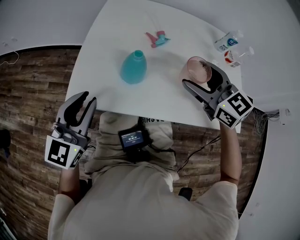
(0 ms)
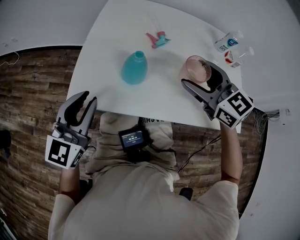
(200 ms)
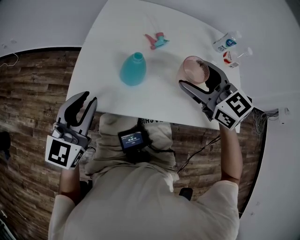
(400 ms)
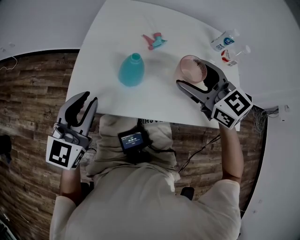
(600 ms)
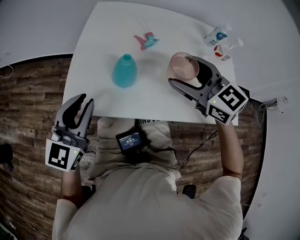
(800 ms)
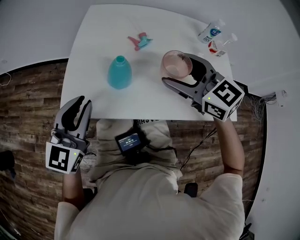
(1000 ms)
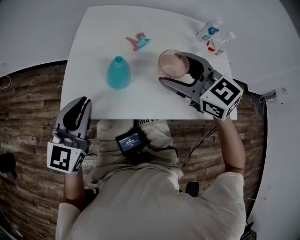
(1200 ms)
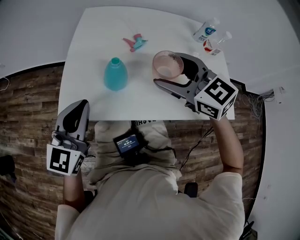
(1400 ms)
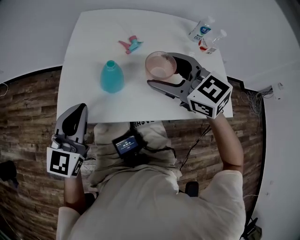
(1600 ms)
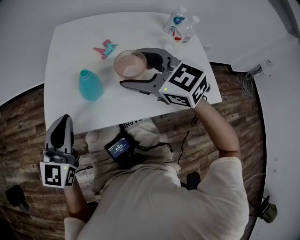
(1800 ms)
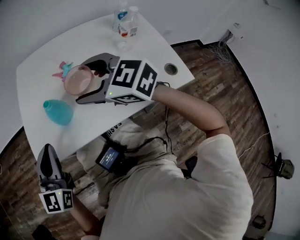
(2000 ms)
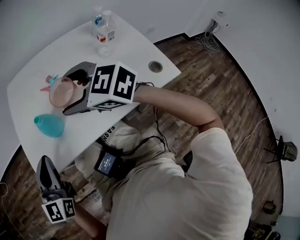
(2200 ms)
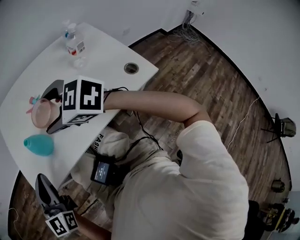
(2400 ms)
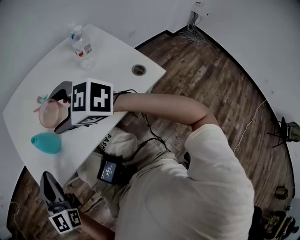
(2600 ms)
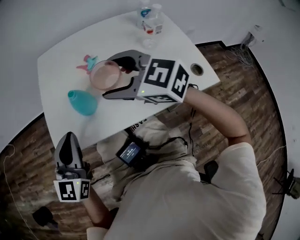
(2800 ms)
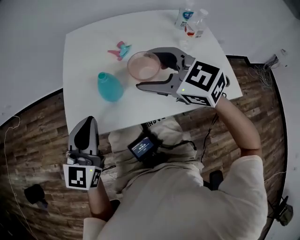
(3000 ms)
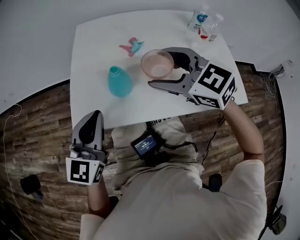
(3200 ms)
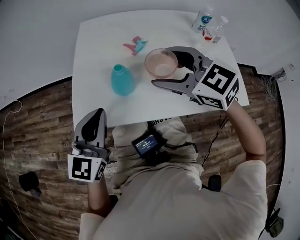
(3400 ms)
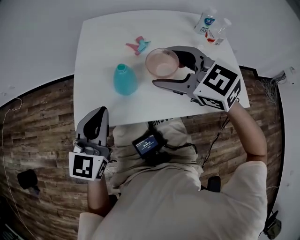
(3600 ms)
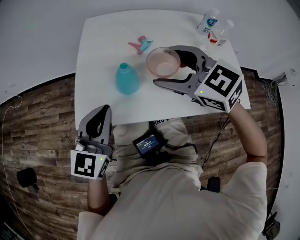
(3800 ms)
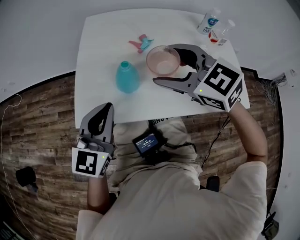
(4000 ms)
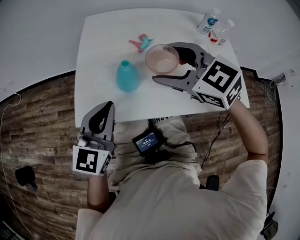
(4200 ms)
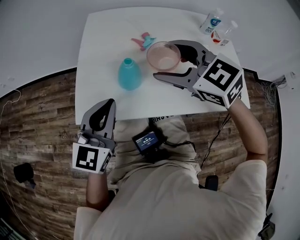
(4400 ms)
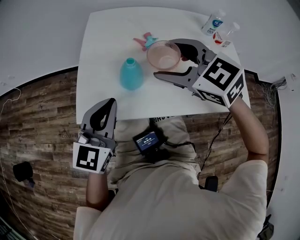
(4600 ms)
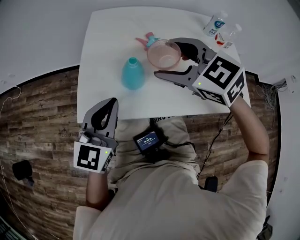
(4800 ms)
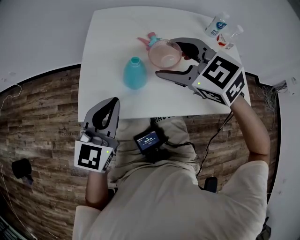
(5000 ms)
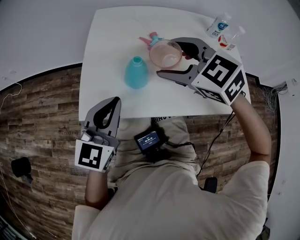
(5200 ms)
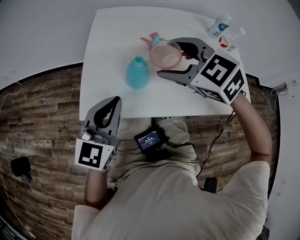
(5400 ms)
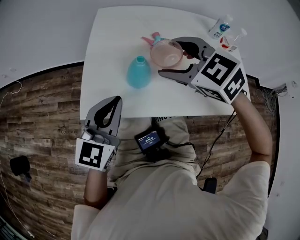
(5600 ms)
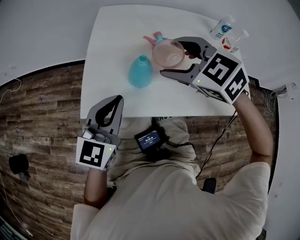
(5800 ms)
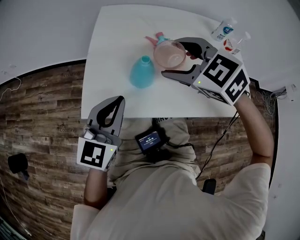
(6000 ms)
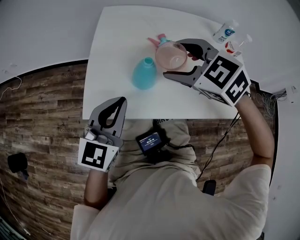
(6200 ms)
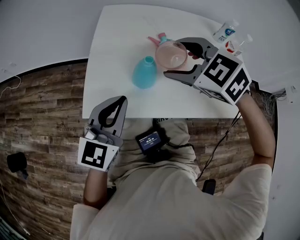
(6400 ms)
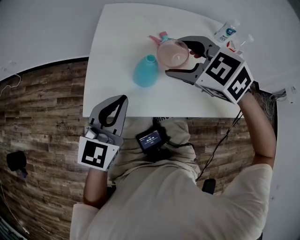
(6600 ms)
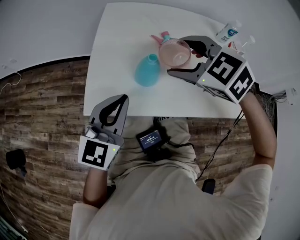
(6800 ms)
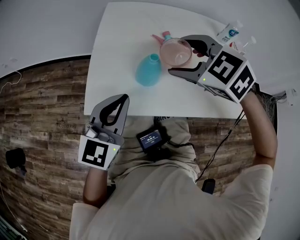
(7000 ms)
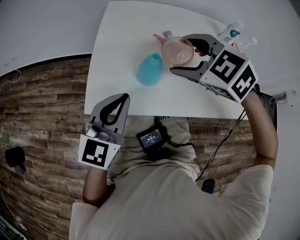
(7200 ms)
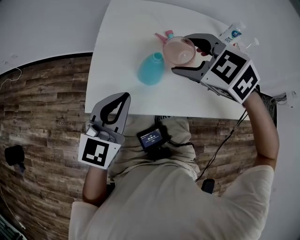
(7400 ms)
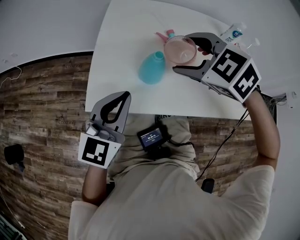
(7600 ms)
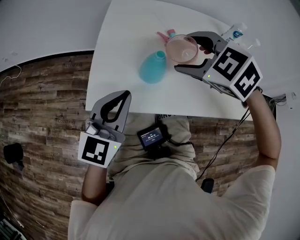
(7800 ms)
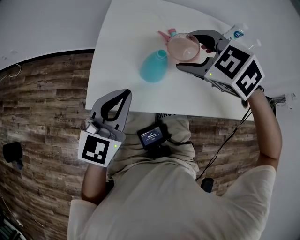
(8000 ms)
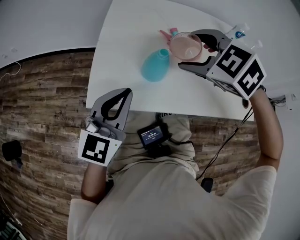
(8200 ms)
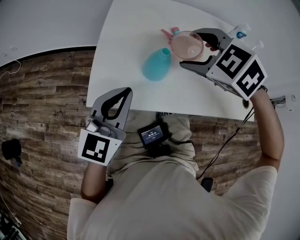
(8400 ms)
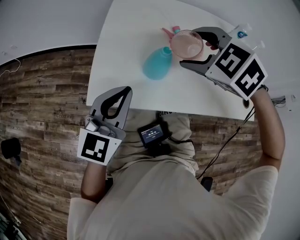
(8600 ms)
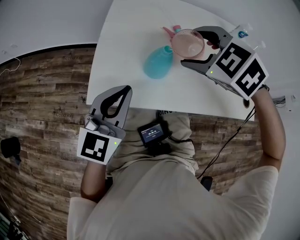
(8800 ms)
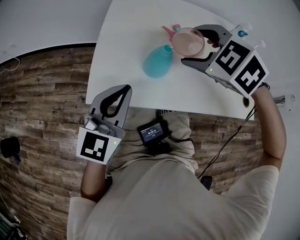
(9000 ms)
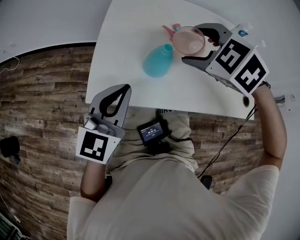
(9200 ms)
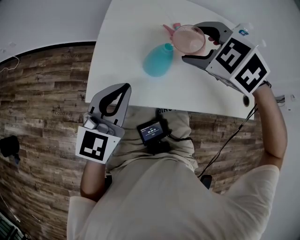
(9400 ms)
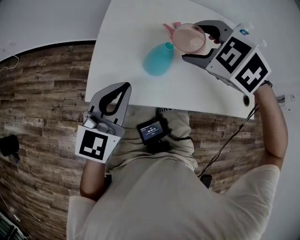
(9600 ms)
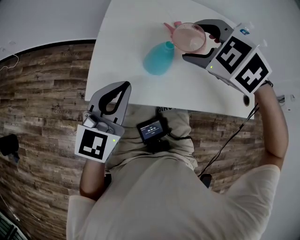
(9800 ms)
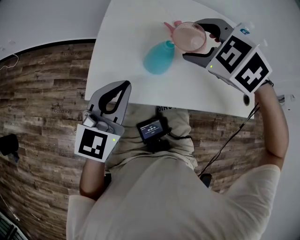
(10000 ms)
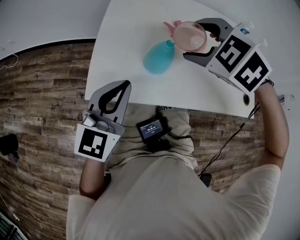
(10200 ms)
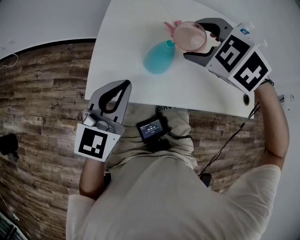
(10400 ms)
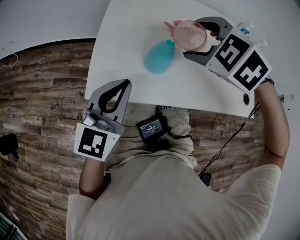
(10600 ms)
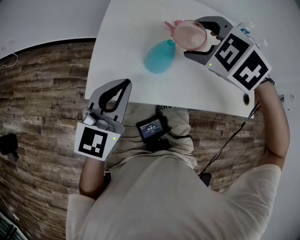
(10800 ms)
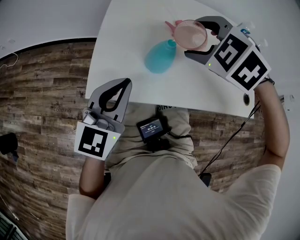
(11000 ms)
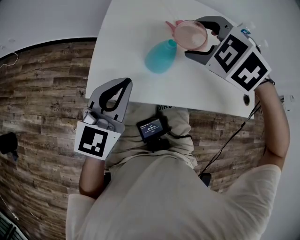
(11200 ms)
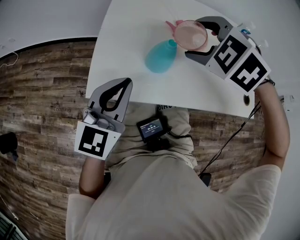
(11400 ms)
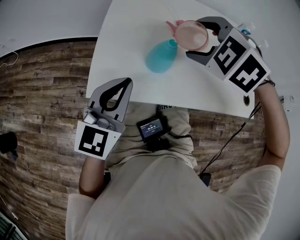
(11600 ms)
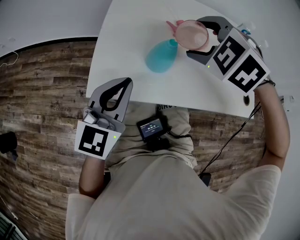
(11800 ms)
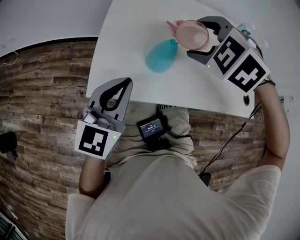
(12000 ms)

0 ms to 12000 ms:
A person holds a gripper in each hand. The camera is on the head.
0 ms to 1600 ms: The left gripper closes.
1600 ms to 4400 ms: There are only small adjustments of the grippers.
4400 ms to 6000 ms: There are only small adjustments of the grippers.
6000 ms to 9000 ms: The grippers make only small movements.
9000 ms to 12000 ms: The grippers make only small movements.

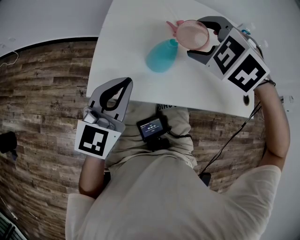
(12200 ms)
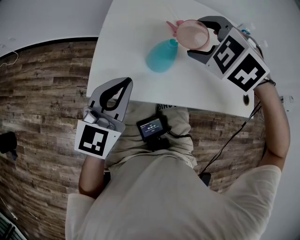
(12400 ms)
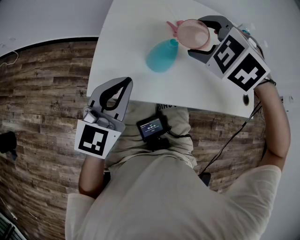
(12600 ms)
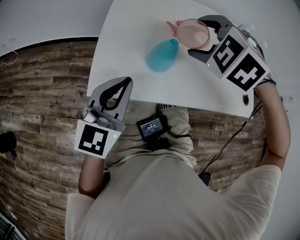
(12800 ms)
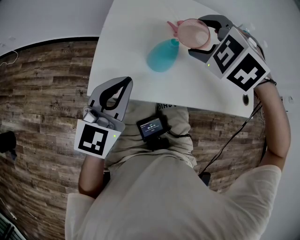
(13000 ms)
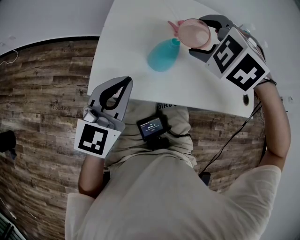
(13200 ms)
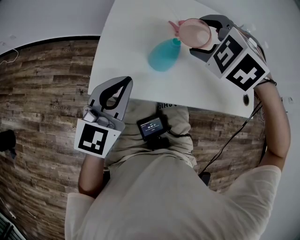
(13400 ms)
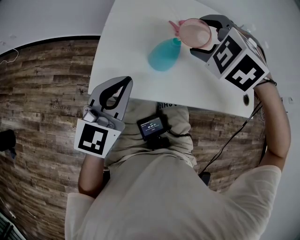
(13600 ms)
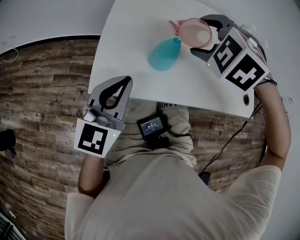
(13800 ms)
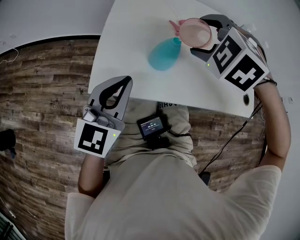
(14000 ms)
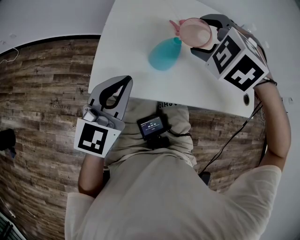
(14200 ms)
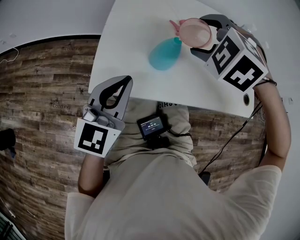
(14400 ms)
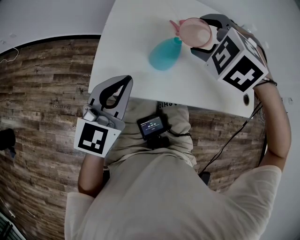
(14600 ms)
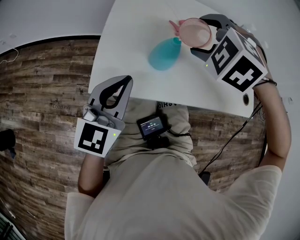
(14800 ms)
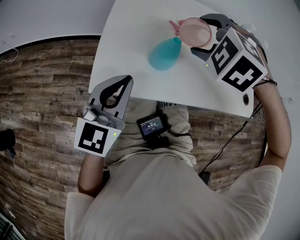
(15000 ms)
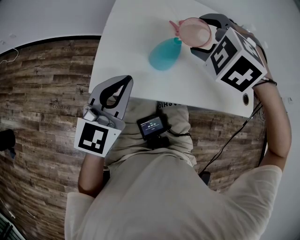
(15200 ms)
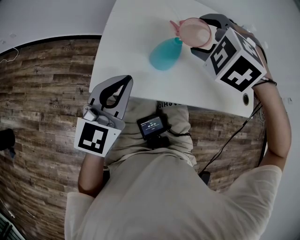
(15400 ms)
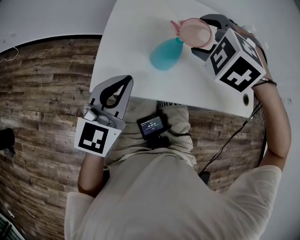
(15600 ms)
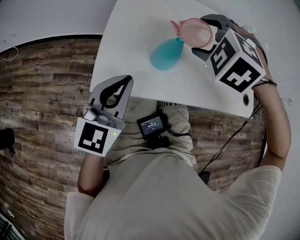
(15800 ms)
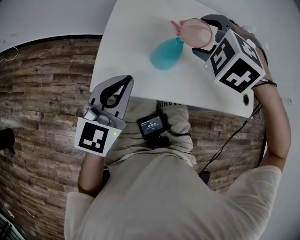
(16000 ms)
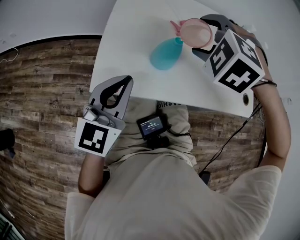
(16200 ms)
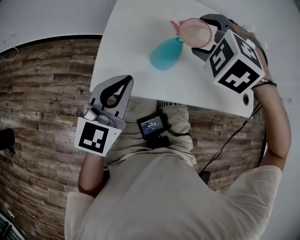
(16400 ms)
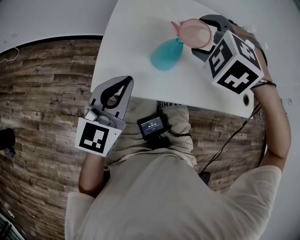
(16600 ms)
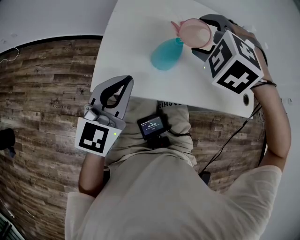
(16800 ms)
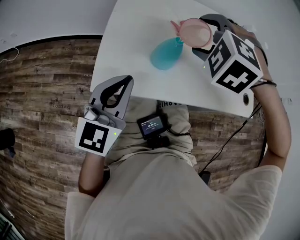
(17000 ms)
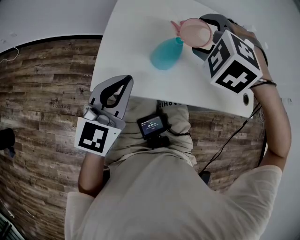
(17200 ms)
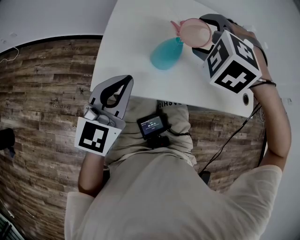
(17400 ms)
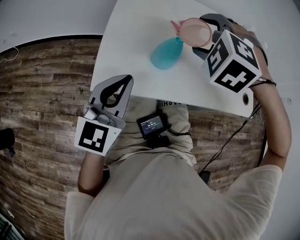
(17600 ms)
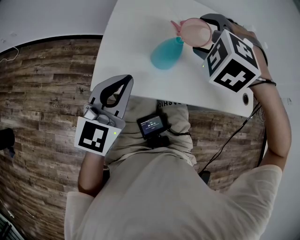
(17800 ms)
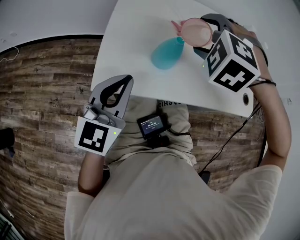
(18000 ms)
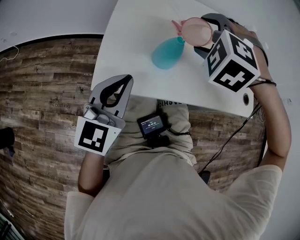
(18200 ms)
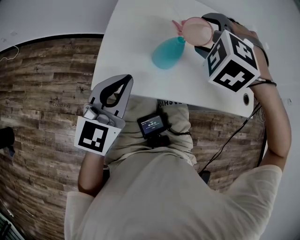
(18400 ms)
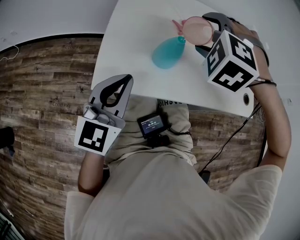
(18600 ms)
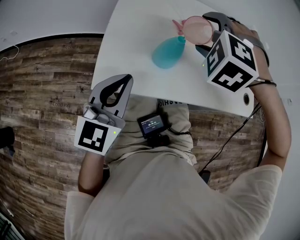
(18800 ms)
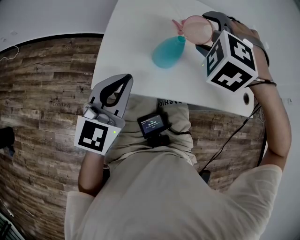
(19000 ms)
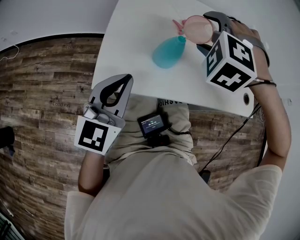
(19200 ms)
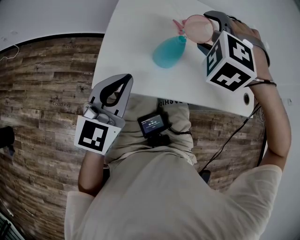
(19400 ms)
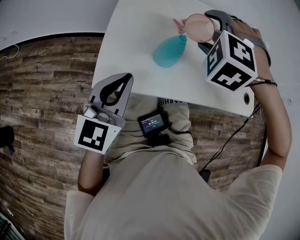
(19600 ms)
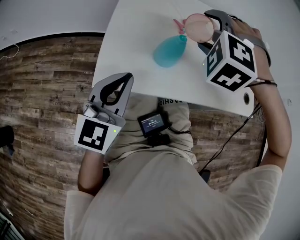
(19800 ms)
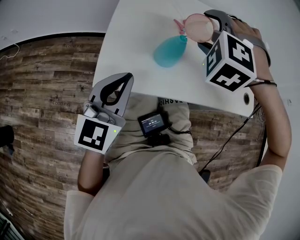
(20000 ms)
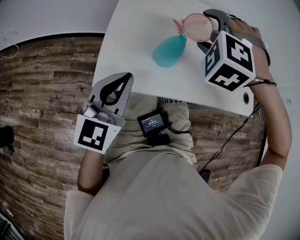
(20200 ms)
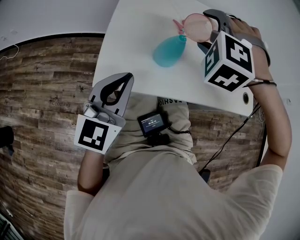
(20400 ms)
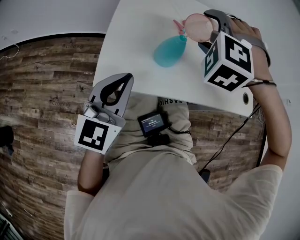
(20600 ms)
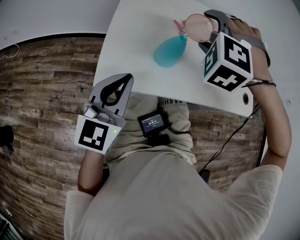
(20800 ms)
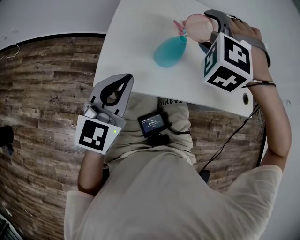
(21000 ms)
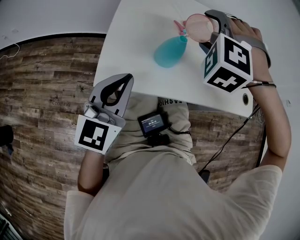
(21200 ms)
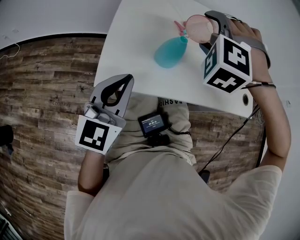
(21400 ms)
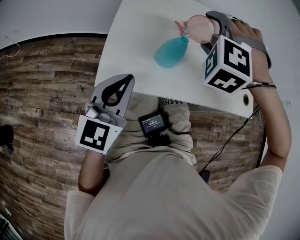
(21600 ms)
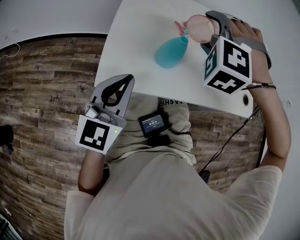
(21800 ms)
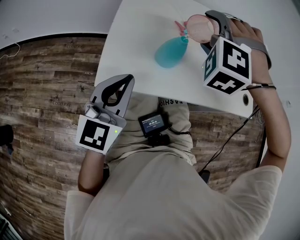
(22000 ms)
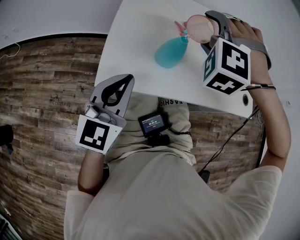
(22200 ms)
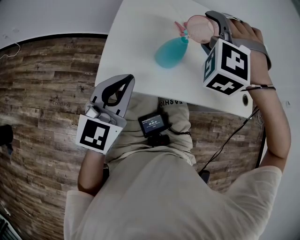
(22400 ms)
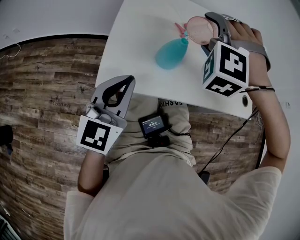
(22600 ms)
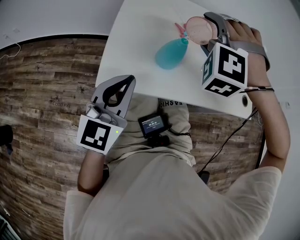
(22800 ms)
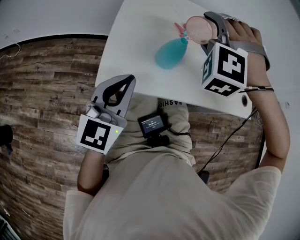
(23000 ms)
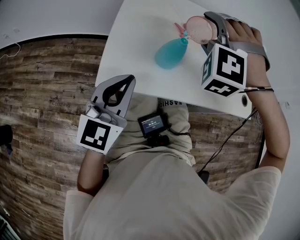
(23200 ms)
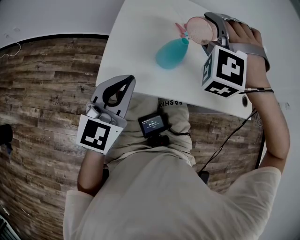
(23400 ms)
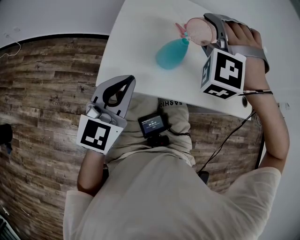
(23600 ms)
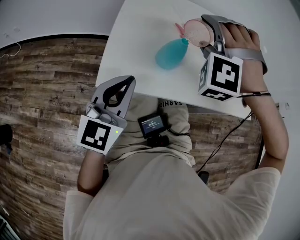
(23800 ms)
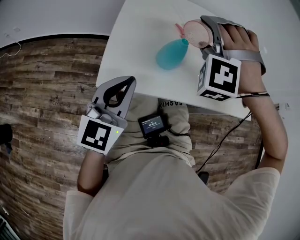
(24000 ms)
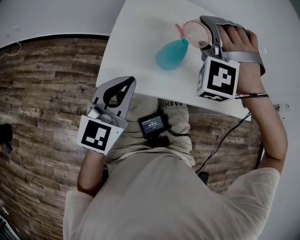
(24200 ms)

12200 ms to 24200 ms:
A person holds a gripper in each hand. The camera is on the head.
12200 ms to 13800 ms: Both grippers stay put.
13800 ms to 15200 ms: Neither gripper changes place.
15200 ms to 16600 ms: The two grippers keep their place.
16600 ms to 21200 ms: The grippers make only small movements.
21200 ms to 24200 ms: The grippers stay close to where they were, moving slightly.

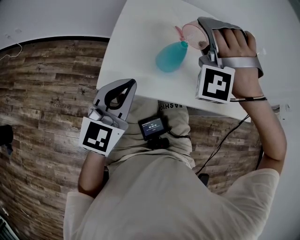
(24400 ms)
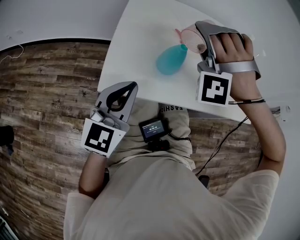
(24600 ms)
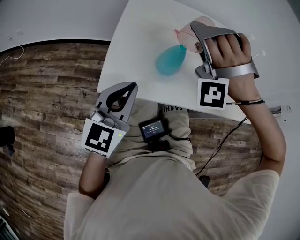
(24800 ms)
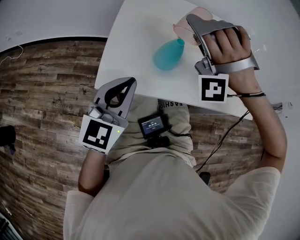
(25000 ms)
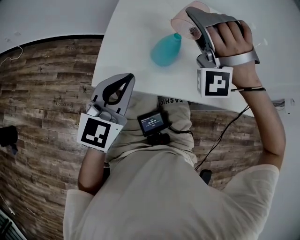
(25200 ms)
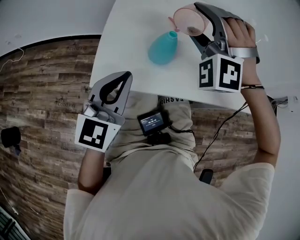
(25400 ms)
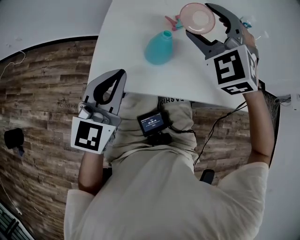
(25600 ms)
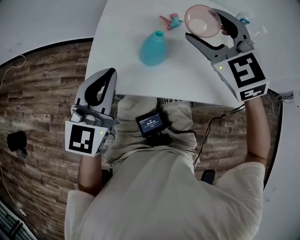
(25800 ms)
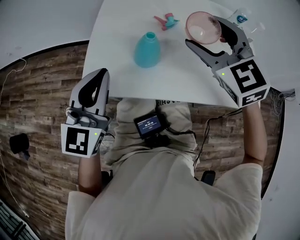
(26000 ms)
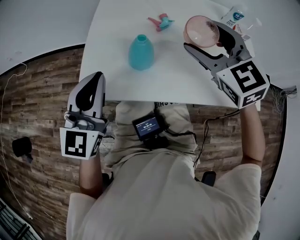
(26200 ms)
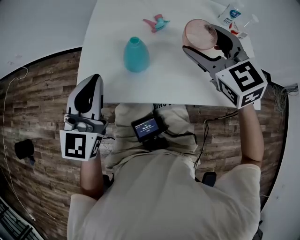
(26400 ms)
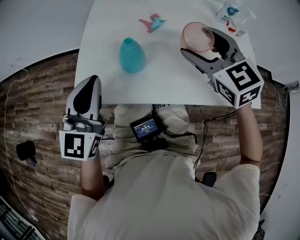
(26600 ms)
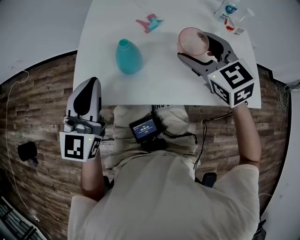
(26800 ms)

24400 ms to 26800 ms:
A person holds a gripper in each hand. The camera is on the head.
24400 ms to 25600 ms: The right gripper rolls clockwise, seen from behind, by roughly 50 degrees.
25600 ms to 26800 ms: The right gripper goes about 15 cm to the right and downward, and twists some 40 degrees clockwise, seen from behind.
